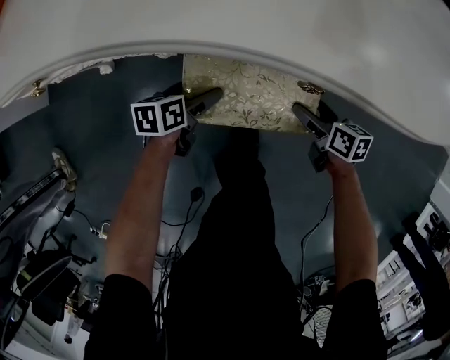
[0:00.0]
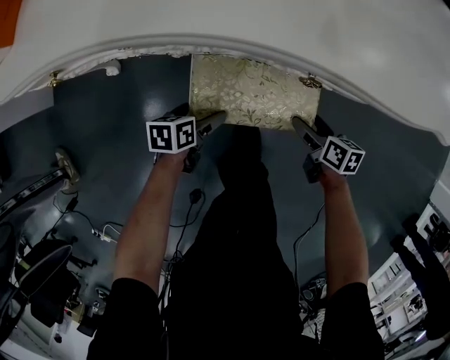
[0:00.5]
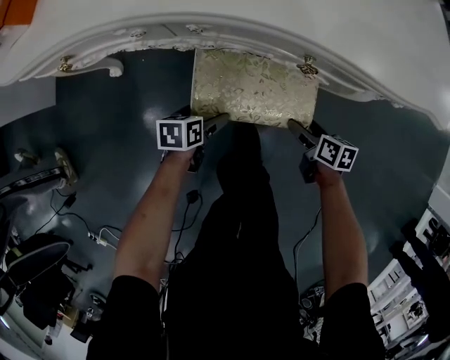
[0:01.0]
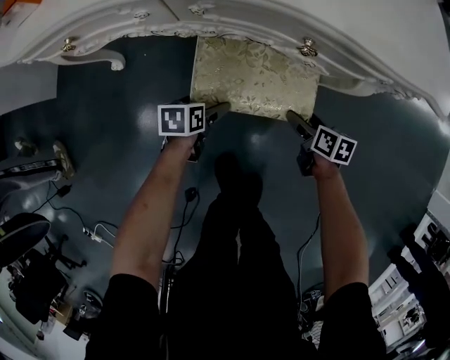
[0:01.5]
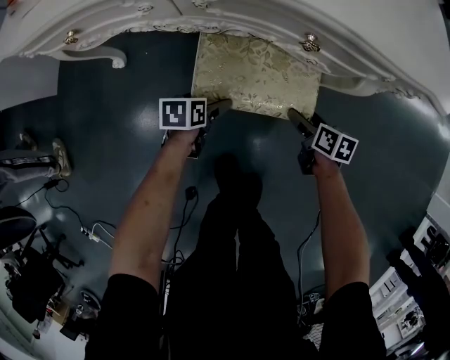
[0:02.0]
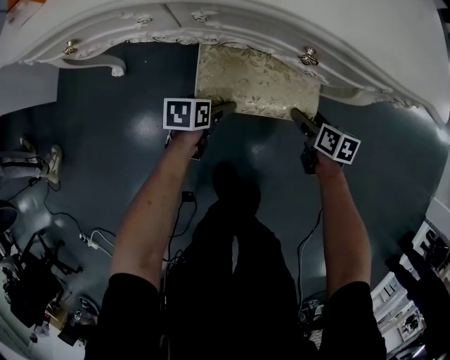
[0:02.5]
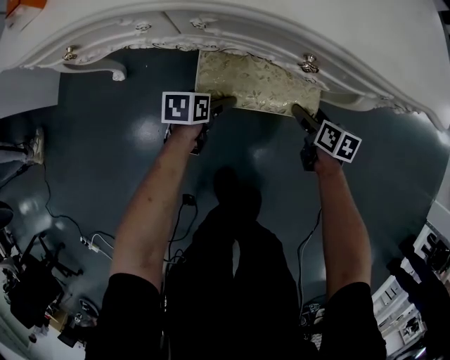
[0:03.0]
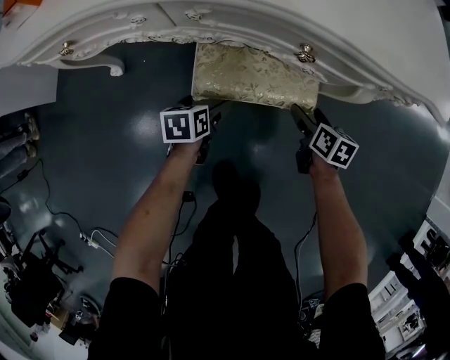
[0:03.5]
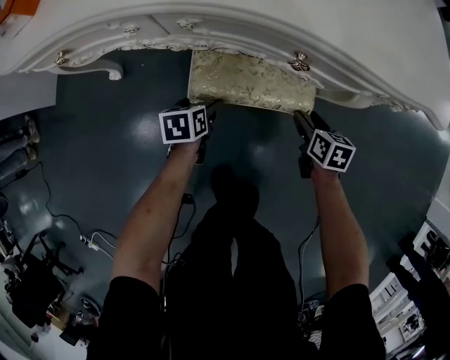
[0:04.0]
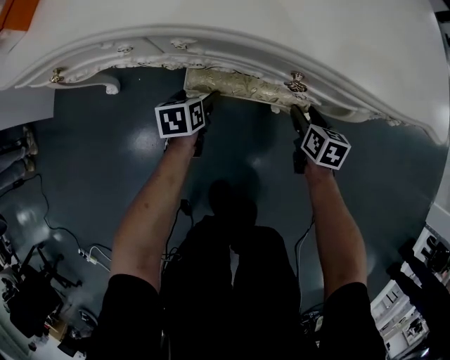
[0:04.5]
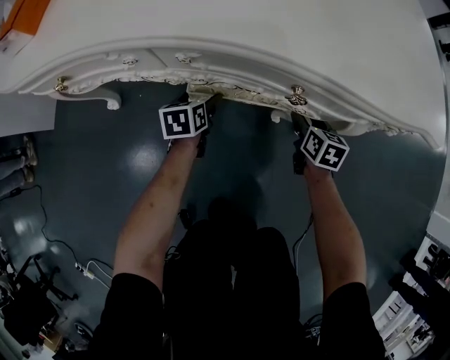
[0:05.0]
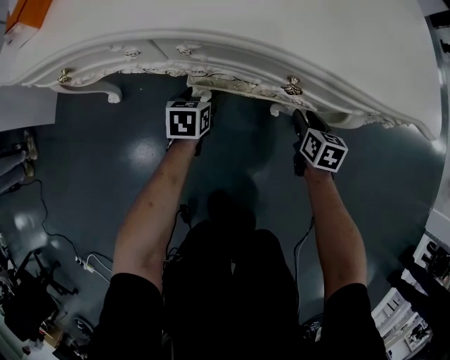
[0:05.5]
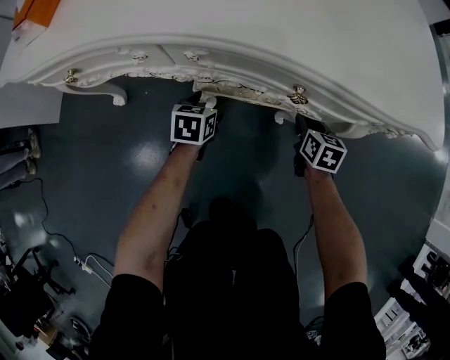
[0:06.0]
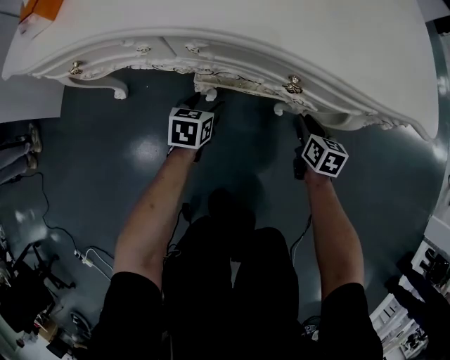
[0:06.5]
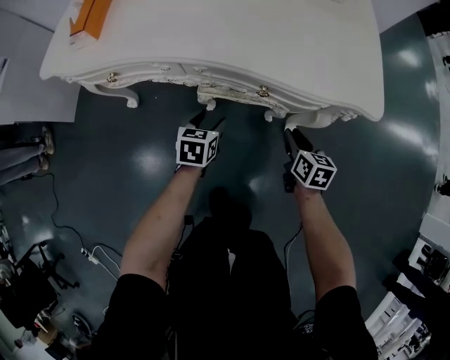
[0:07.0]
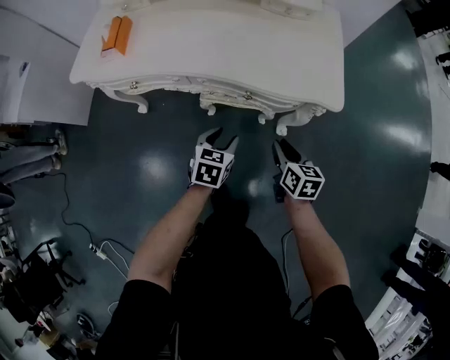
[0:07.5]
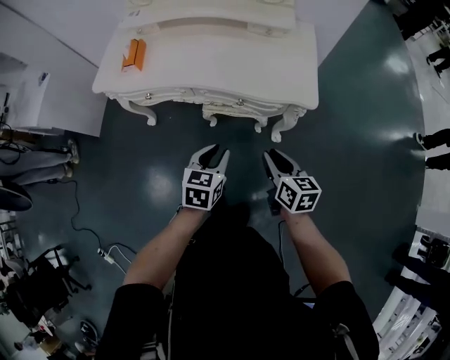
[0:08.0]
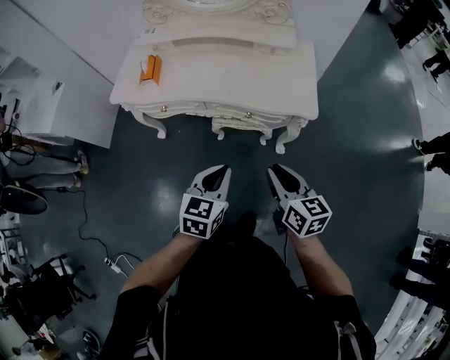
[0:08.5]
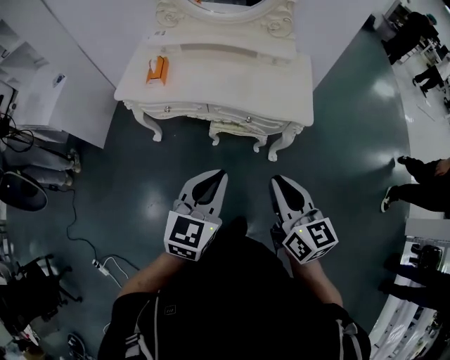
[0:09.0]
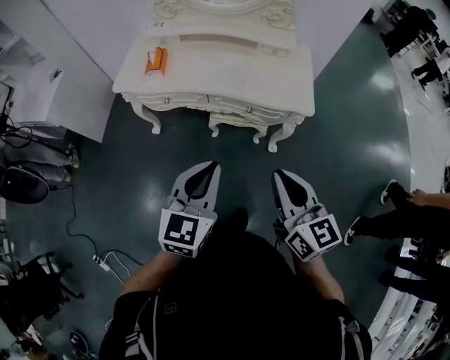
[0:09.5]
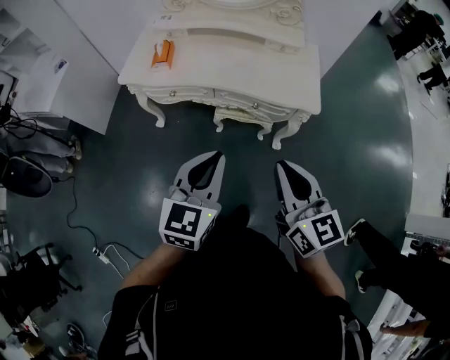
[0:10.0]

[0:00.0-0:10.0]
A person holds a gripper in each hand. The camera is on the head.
0:00.0 to 0:02.0: The two grippers go roughly 5 cm backward.
0:02.0 to 0:04.0: The right gripper closes its fingers.
0:04.0 to 0:06.0: Both grippers move forward, some 10 cm.
0:06.0 to 0:08.0: Both grippers travel together upward and backward, roughly 50 cm. The right gripper rotates roughly 20 degrees. The left gripper closes.
0:08.0 to 0:10.0: The two grippers go some 30 cm upward and backward. The right gripper swivels approximately 30 degrees, while the left gripper rotates approximately 20 degrees.

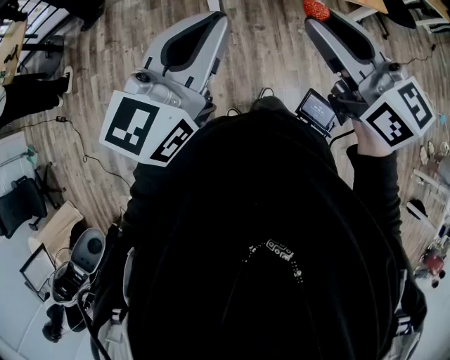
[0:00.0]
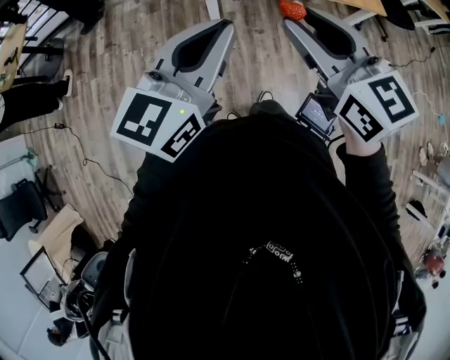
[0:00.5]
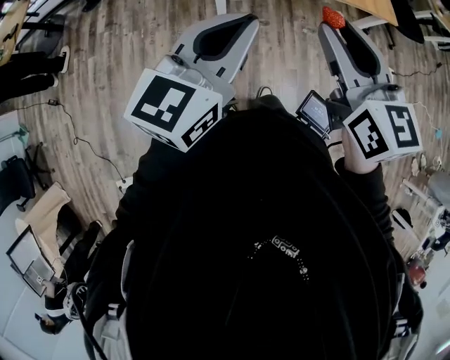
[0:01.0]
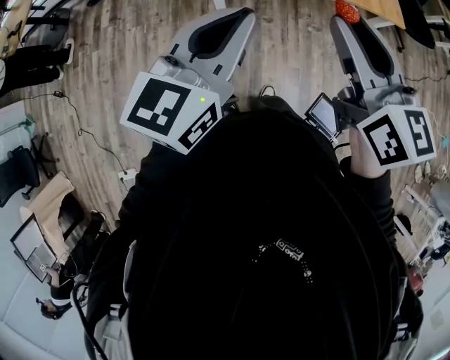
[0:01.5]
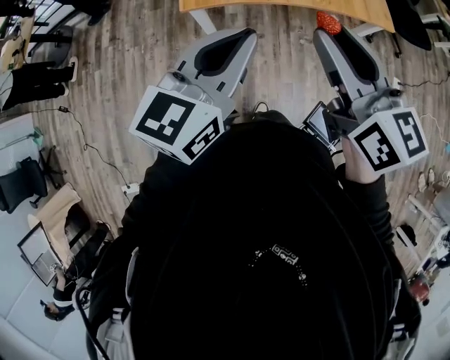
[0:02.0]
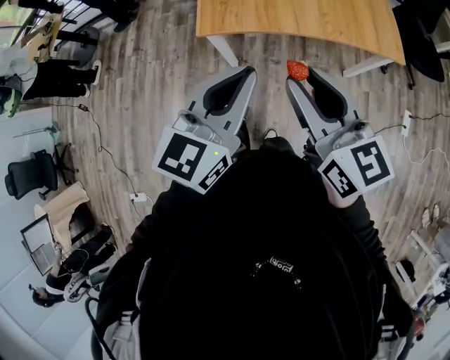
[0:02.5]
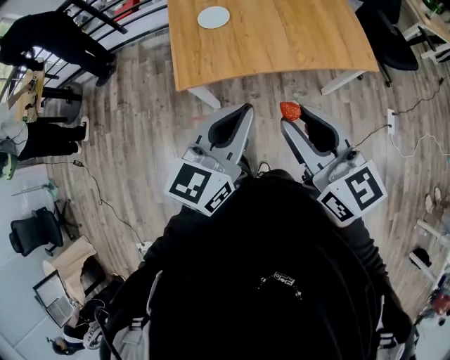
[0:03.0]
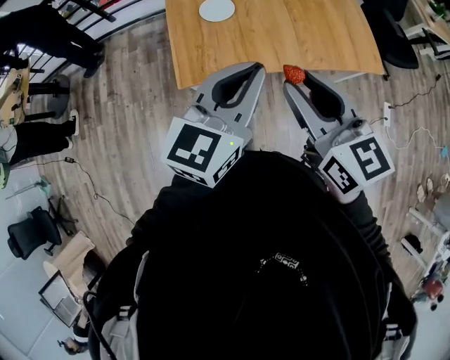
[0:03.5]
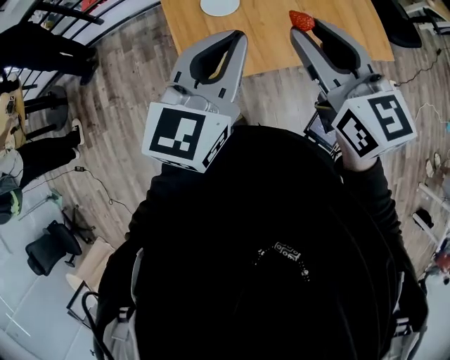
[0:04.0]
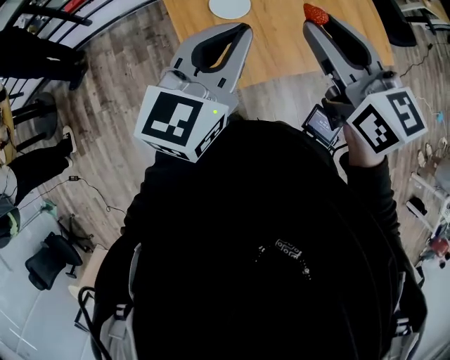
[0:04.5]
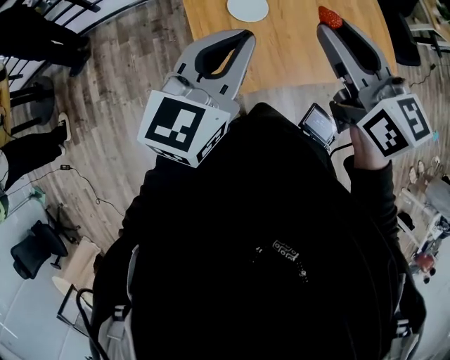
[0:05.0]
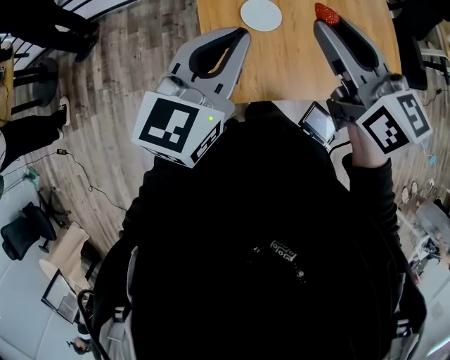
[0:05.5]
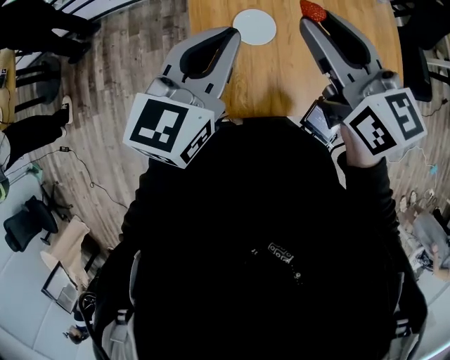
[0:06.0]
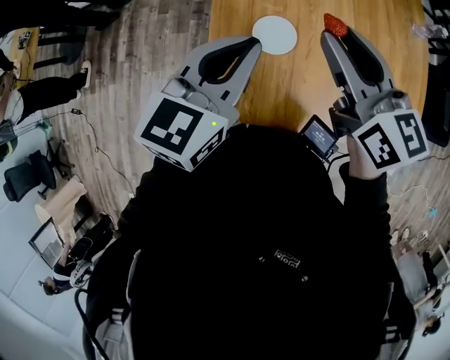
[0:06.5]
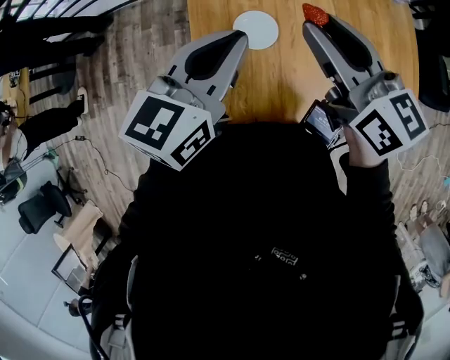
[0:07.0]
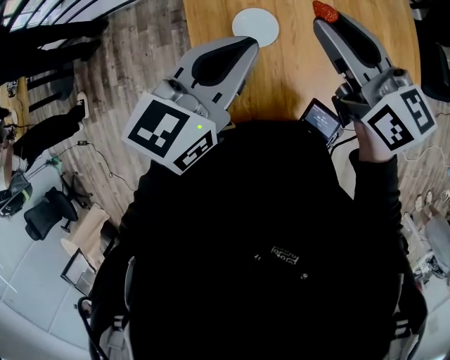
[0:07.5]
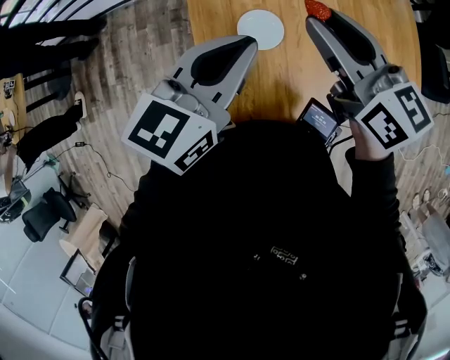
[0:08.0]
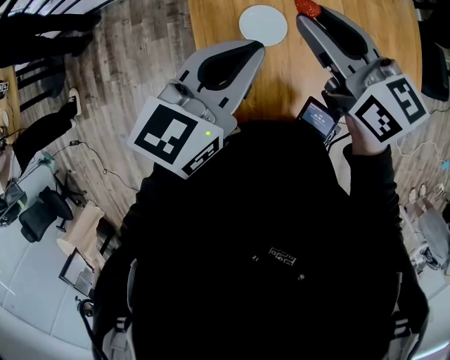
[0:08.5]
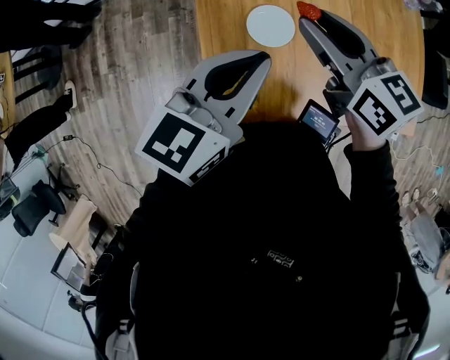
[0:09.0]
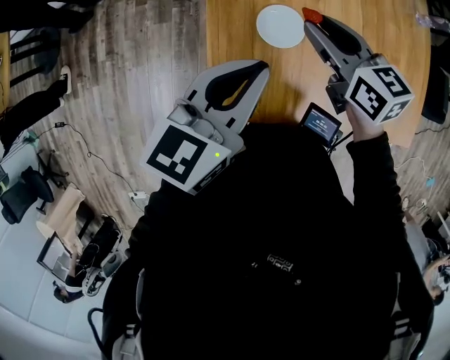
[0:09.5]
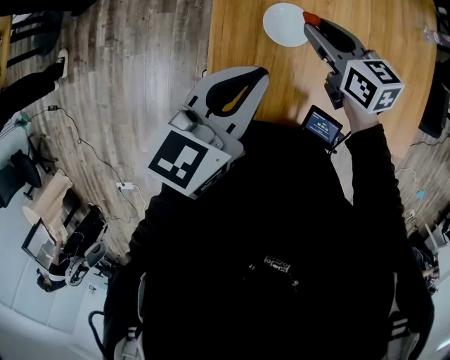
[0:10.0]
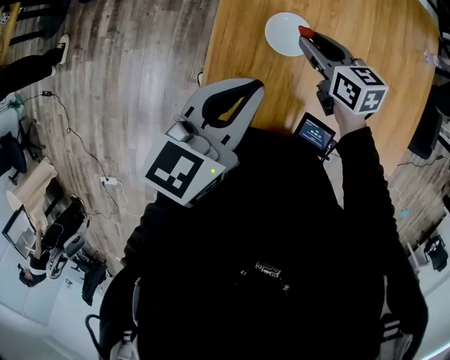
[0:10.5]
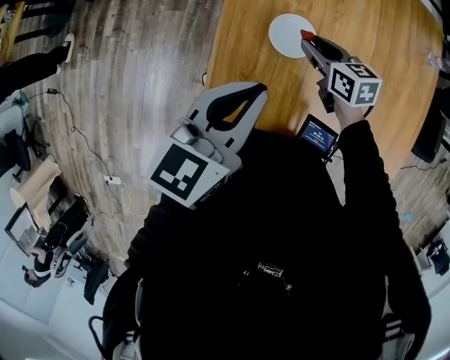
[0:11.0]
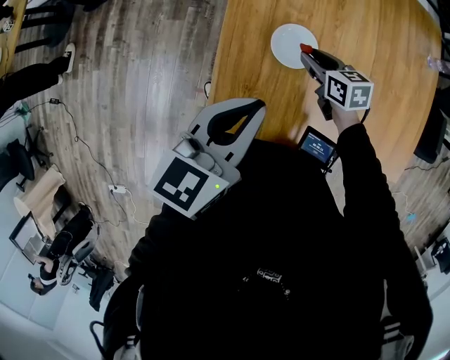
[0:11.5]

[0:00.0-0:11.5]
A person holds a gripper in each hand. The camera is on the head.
0:00.0 to 0:02.0: The two grippers go approximately 20 cm to the right and forward.
0:02.0 to 0:04.0: The grippers both shift forward by about 25 cm.
0:04.0 to 0:06.0: Both grippers move forward and to the left, some 20 cm.
0:06.0 to 0:07.5: The left gripper travels to the right by about 5 cm. Meanwhile the right gripper shifts roughly 10 cm to the right and forward.
0:07.5 to 0:09.5: The left gripper changes place by some 5 cm; the right gripper shifts some 15 cm downward and to the left.
0:09.5 to 0:11.5: The right gripper heads downward, covering some 20 cm.

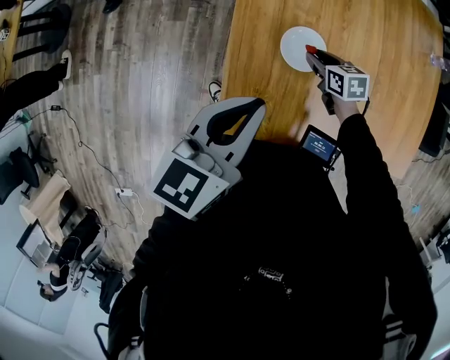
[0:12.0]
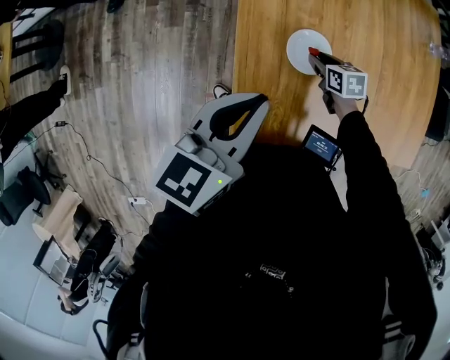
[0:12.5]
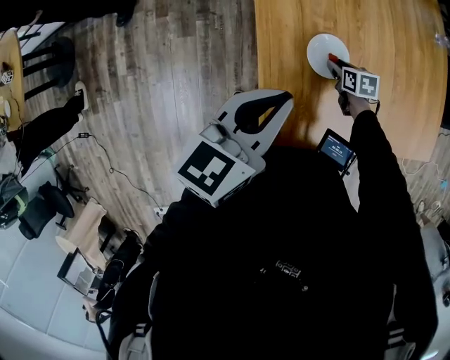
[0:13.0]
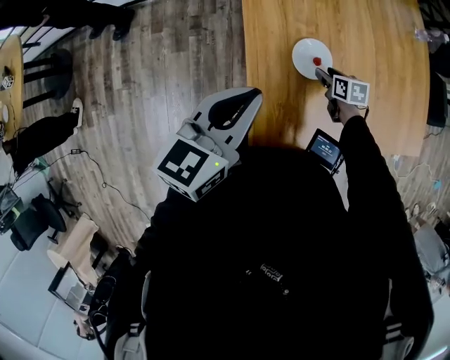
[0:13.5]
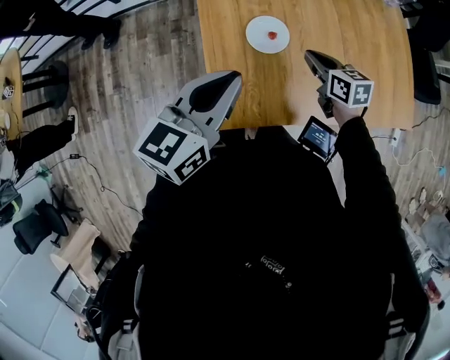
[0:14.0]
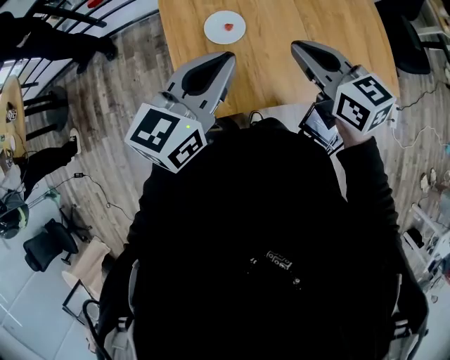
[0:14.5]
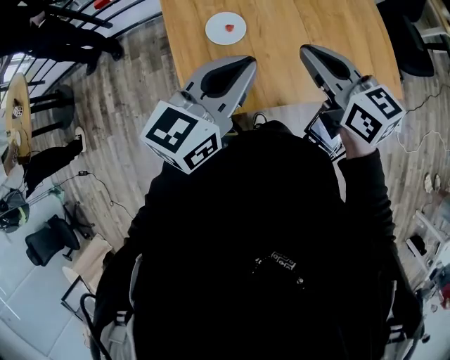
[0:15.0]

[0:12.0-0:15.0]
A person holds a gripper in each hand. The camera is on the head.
0:12.0 to 0:13.5: The right gripper shifts by some 5 cm, and changes its angle by approximately 20 degrees. The left gripper shifts roughly 10 cm to the left.
0:13.5 to 0:15.0: The left gripper heads to the right, covering some 20 cm, while the right gripper is displaced upward by roughly 35 cm, points its fingers about 40 degrees further upward, and closes.

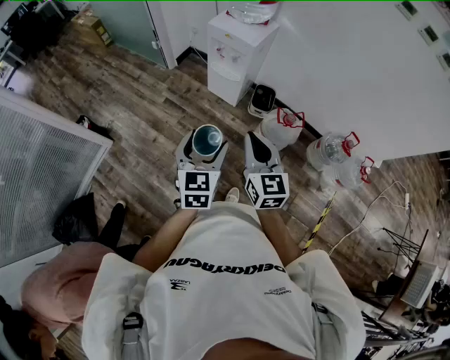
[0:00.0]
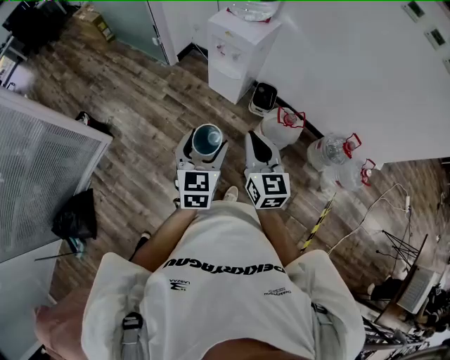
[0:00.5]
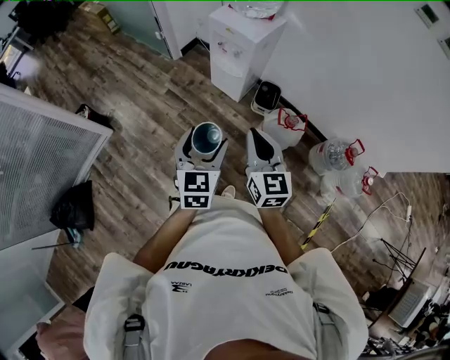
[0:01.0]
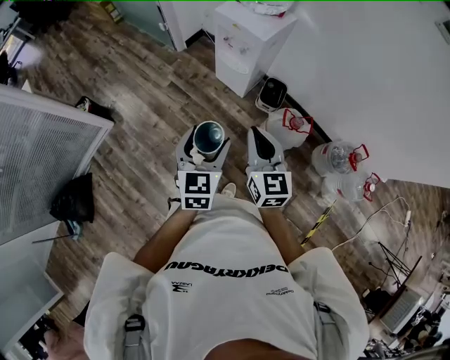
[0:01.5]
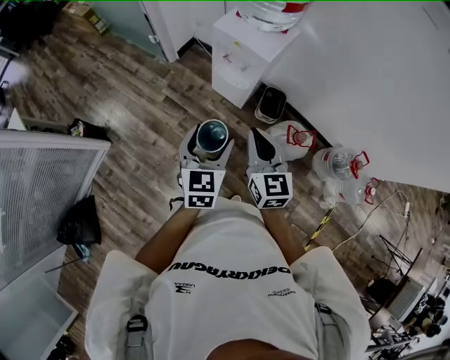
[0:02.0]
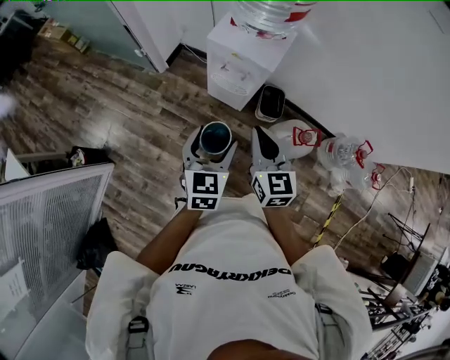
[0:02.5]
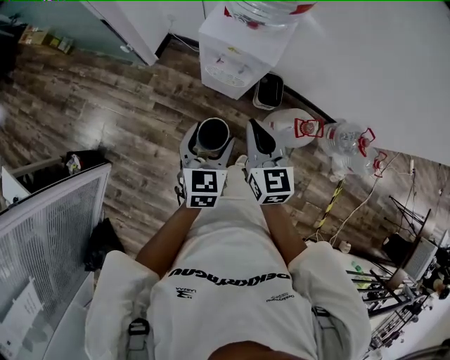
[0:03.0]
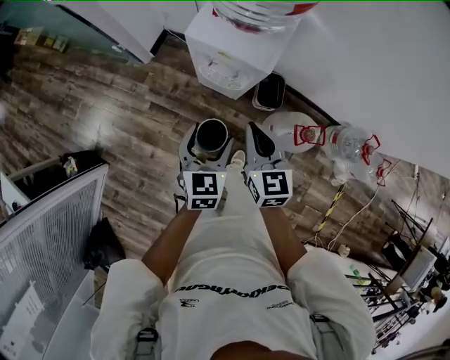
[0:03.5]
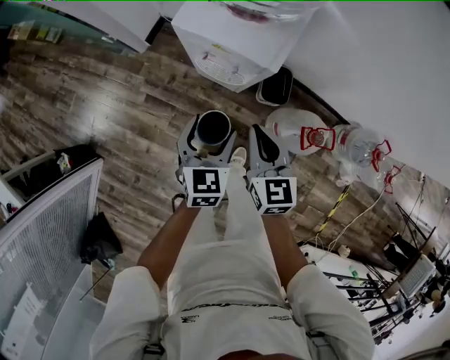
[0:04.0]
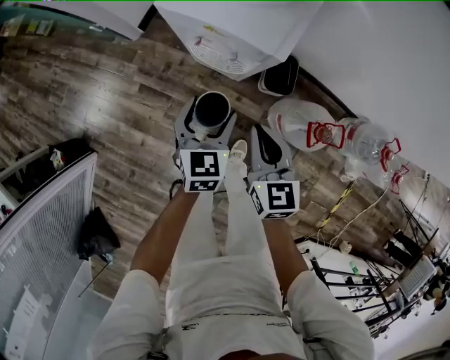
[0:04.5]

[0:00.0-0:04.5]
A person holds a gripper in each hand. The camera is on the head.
0:00.0 to 0:02.0: The two grippers go some 25 cm forward.
0:02.0 to 0:04.5: Both grippers move downward and forward, roughly 40 cm.
